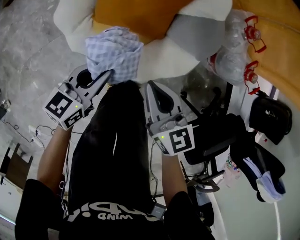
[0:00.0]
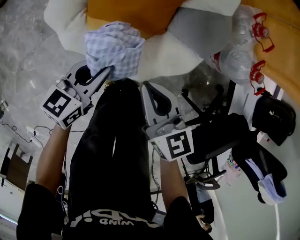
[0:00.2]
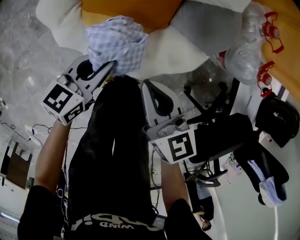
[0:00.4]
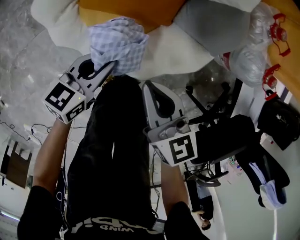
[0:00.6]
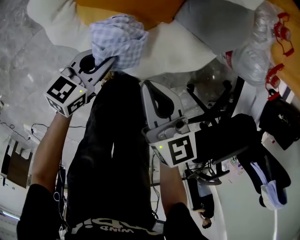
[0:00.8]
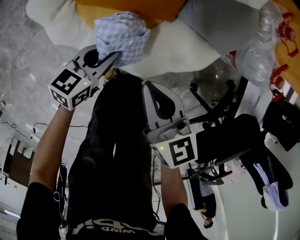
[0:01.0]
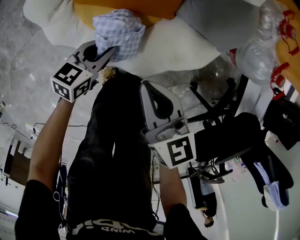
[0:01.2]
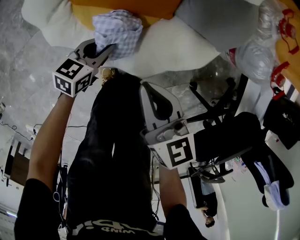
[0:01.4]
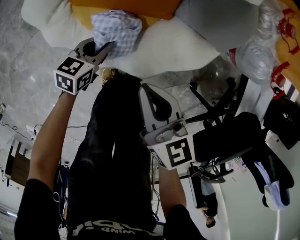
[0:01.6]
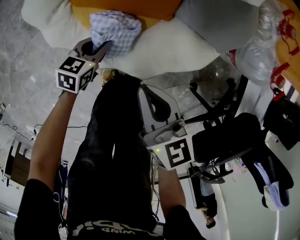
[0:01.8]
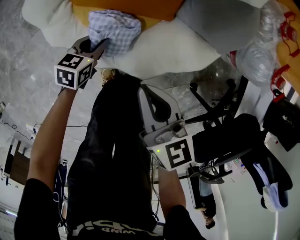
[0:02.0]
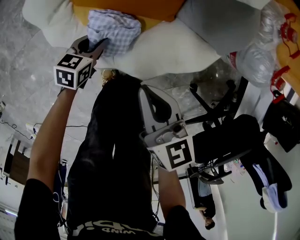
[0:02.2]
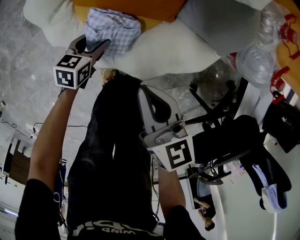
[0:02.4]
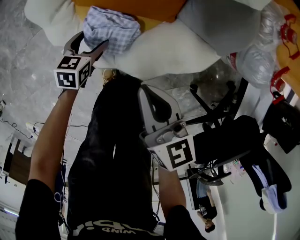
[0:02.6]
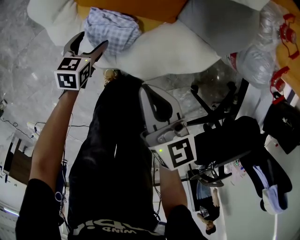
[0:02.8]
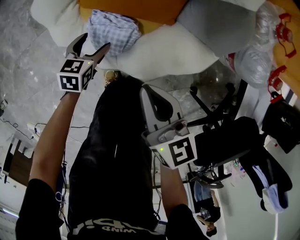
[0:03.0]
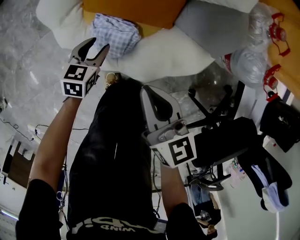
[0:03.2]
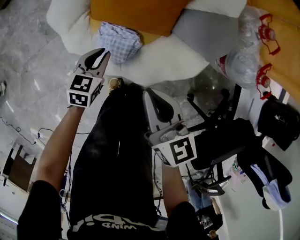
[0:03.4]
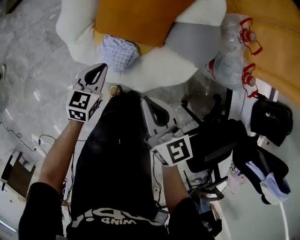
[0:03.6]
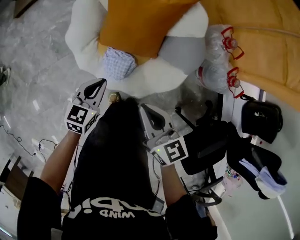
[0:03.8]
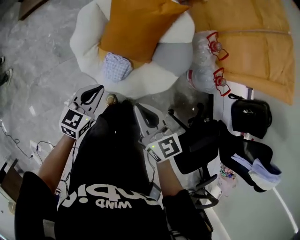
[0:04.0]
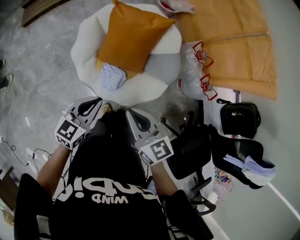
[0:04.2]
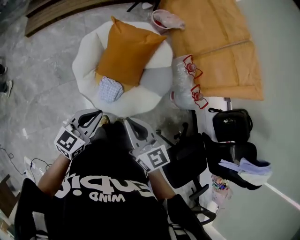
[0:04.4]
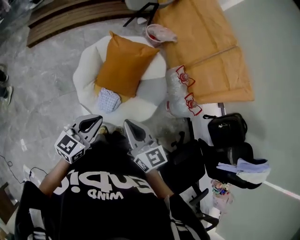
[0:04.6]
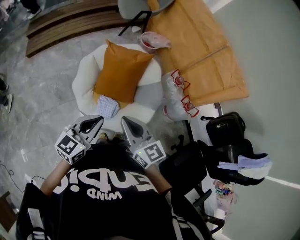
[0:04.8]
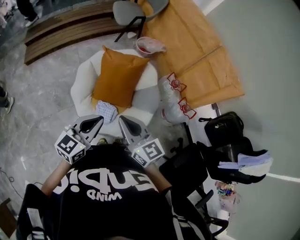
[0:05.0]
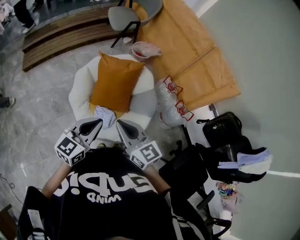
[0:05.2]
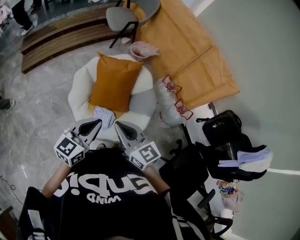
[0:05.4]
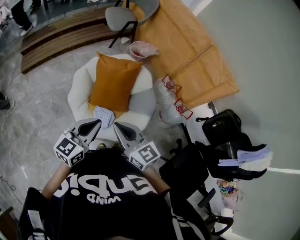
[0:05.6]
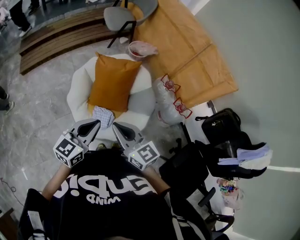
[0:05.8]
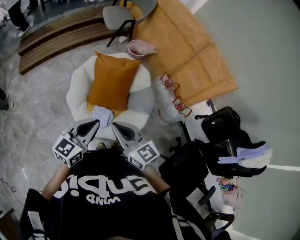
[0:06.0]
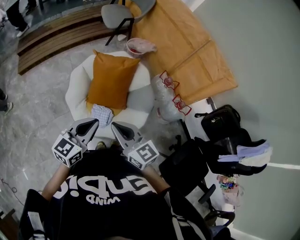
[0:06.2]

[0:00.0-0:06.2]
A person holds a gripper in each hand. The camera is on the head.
0:00.0 to 0:01.6: The left gripper heads downward, covering some 30 cm. The right gripper travels downward by approximately 15 cm.
0:01.6 to 0:03.2: The left gripper goes about 5 cm to the left, and opens, then closes again.
0:03.2 to 0:04.6: The two grippers go about 50 cm upward. The right gripper turns by roughly 20 degrees. The left gripper angles its fingers upward, by roughly 40 degrees, and closes up.
0:04.6 to 0:06.2: The left gripper changes place by some 5 cm.

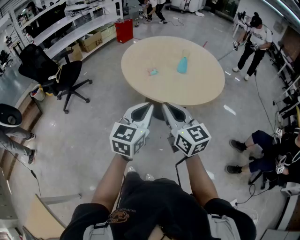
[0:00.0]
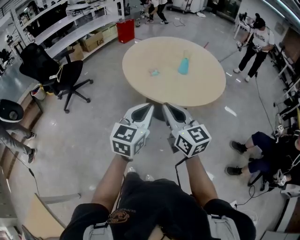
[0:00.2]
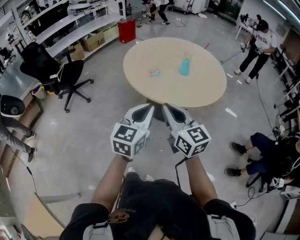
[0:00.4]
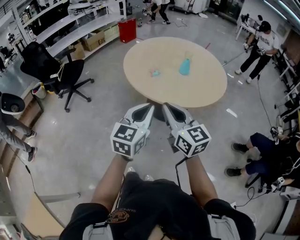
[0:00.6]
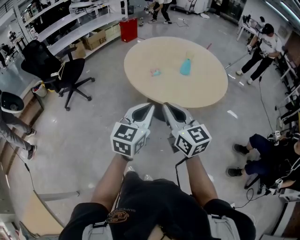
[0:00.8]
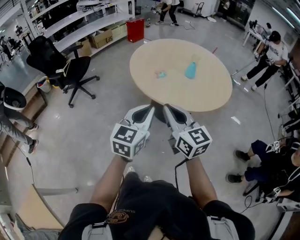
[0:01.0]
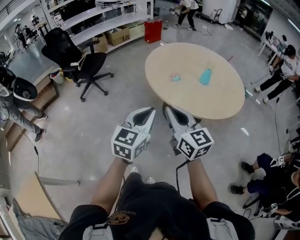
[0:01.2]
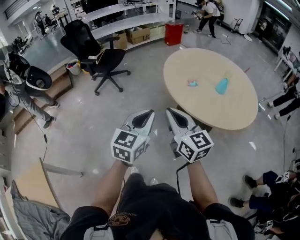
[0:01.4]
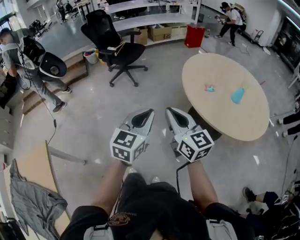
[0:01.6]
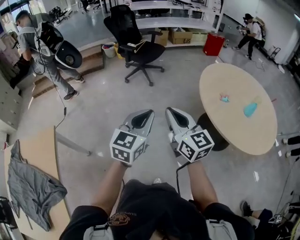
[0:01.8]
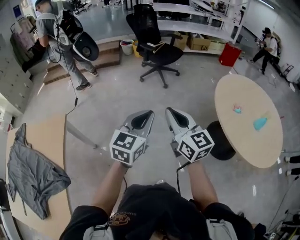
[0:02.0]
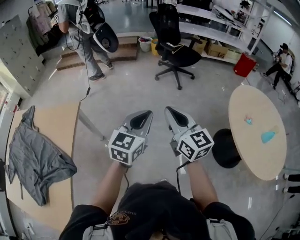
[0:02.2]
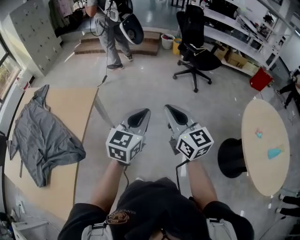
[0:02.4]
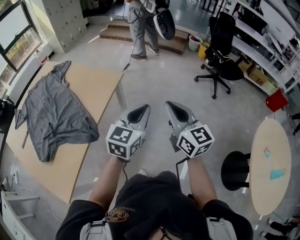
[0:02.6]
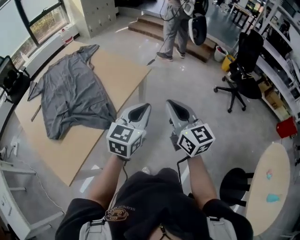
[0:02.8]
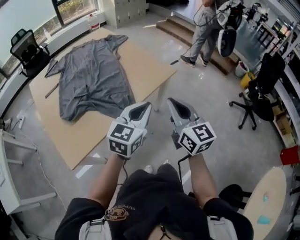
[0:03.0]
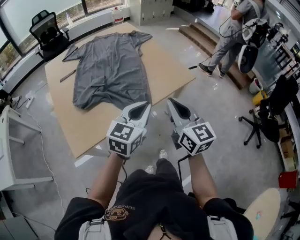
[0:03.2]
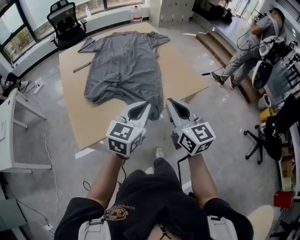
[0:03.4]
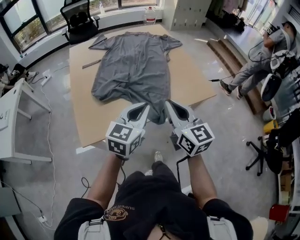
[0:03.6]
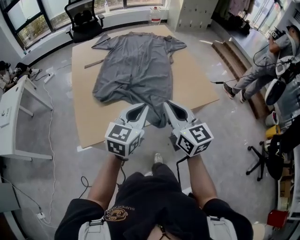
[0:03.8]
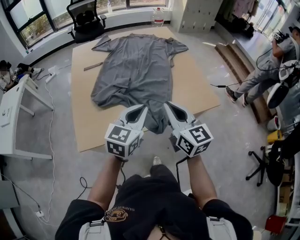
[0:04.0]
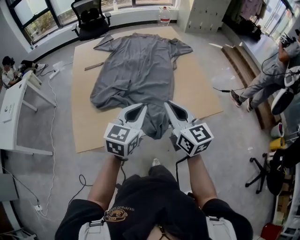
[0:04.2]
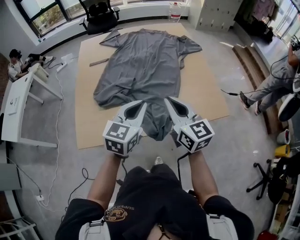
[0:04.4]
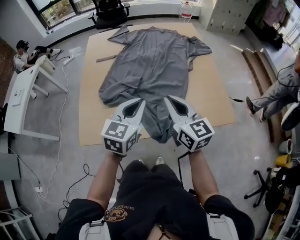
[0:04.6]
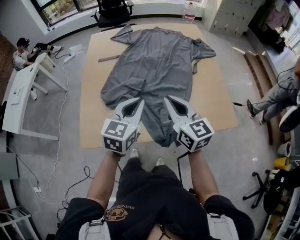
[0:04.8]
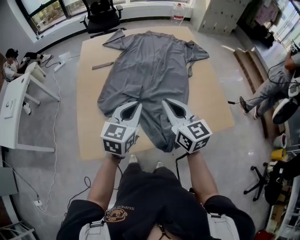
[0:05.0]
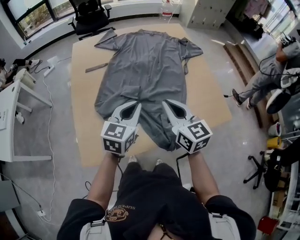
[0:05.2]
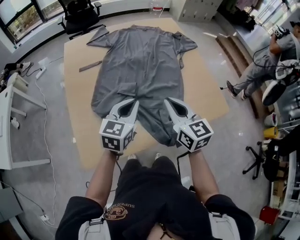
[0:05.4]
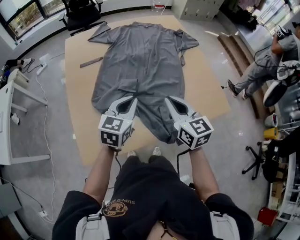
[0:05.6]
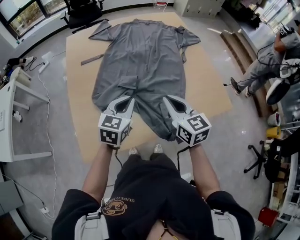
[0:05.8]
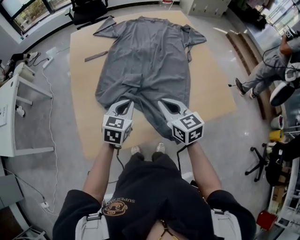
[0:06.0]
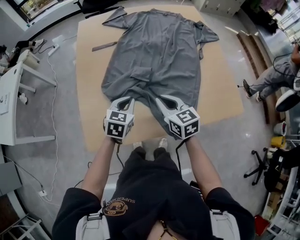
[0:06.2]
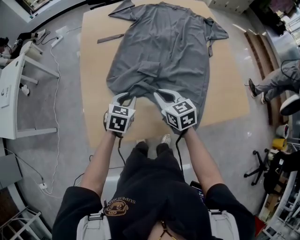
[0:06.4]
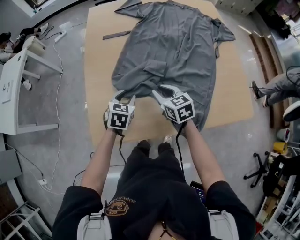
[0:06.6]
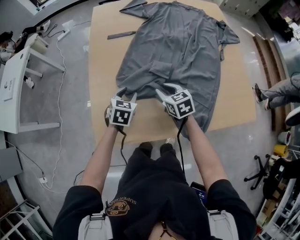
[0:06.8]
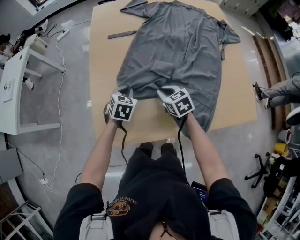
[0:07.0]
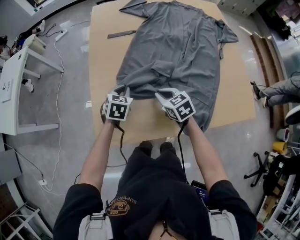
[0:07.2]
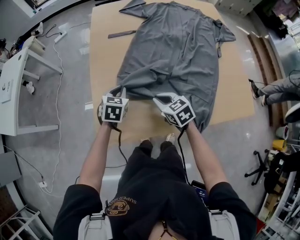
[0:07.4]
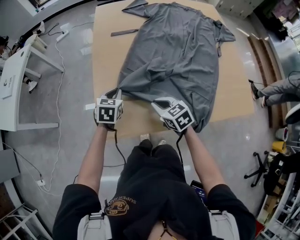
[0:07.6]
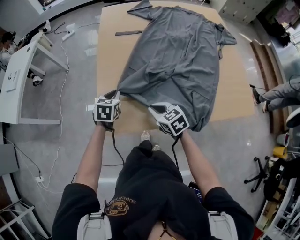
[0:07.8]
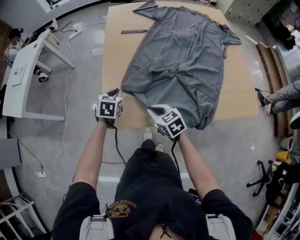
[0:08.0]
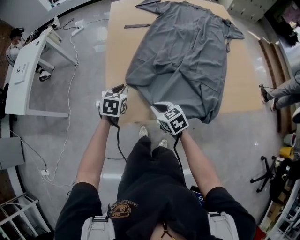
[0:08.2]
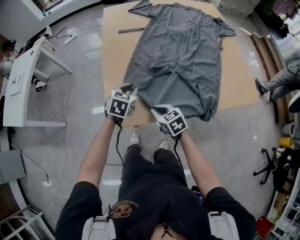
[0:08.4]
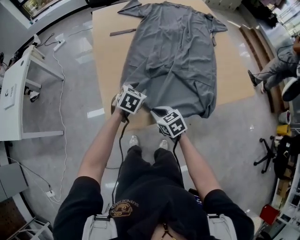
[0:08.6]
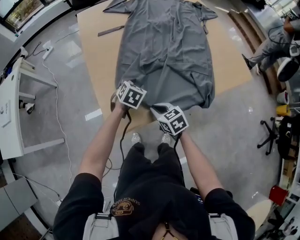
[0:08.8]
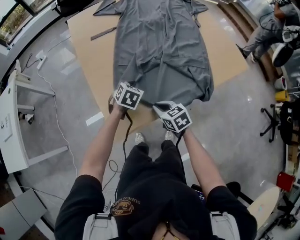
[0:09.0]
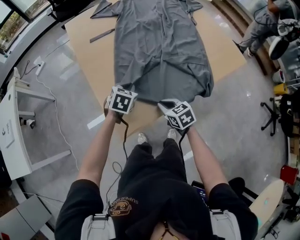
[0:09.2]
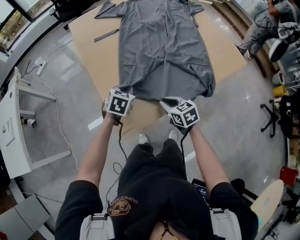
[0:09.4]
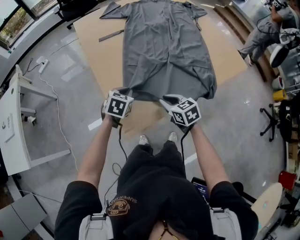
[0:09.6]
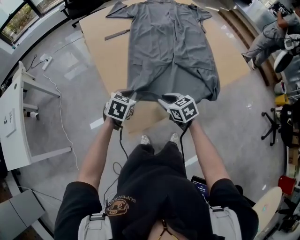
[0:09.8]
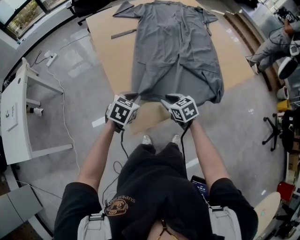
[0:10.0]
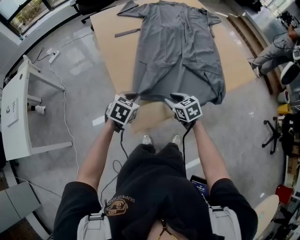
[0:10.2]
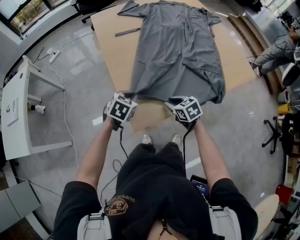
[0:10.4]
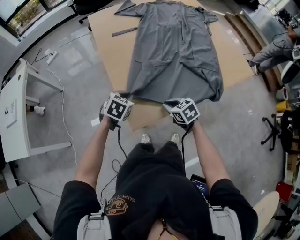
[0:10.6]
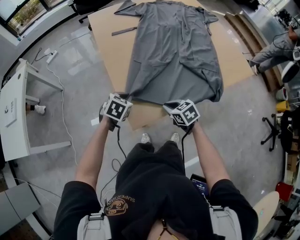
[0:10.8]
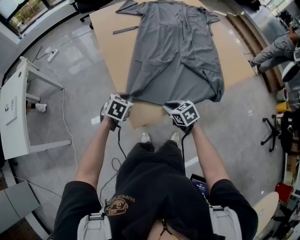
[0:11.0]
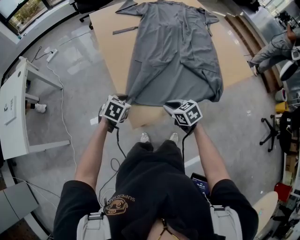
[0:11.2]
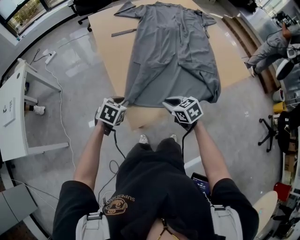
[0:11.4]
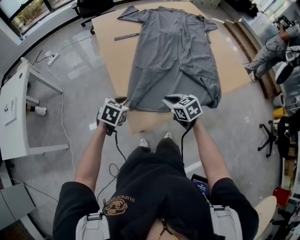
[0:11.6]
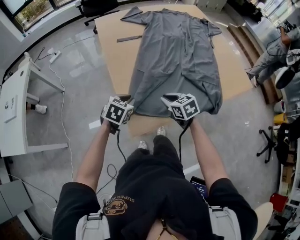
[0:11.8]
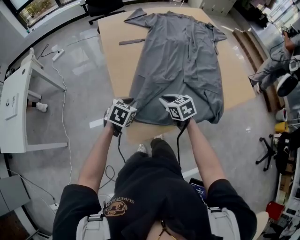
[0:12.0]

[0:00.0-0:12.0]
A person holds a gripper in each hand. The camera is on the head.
0:00.0 to 0:01.6: The right gripper changes place by approximately 15 cm, and changes its angle by approximately 30 degrees, while the left gripper changes place by some 20 cm, and changes its angle by about 30 degrees.
0:01.6 to 0:03.0: The two grippers travel together, approximately 60 cm. The right gripper turns by roughly 70 degrees. The left gripper changes its angle by roughly 70 degrees.
0:03.0 to 0:04.4: The left gripper moves about 25 cm, and turns by roughly 40 degrees, while the right gripper ends up some 25 cm from where it was, and swivels roughly 40 degrees.
0:04.4 to 0:06.0: The right gripper goes about 15 cm downward, to the left and forward. The left gripper shifts approximately 20 cm to the left, downward and forward.
0:06.0 to 0:07.6: Both grippers travel together to the left and downward, about 20 cm. The right gripper swivels about 30 degrees, and opens and closes again; the left gripper rotates about 20 degrees, and opens, then closes again.
0:07.6 to 0:09.0: The left gripper moves roughly 10 cm, turns by some 30 degrees, and opens and closes again. Meanwhile the right gripper moves some 10 cm, and rotates some 20 degrees.
0:09.0 to 0:10.4: The left gripper is displaced to the left and backward by roughly 15 cm.
0:10.4 to 0:12.0: The right gripper travels forward by roughly 10 cm.

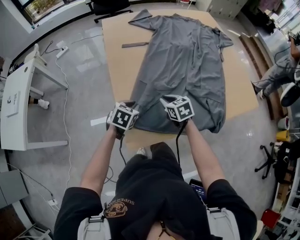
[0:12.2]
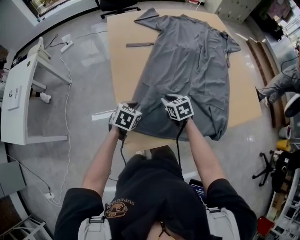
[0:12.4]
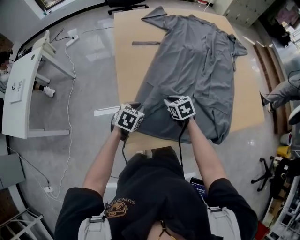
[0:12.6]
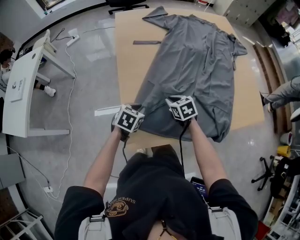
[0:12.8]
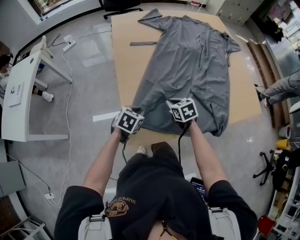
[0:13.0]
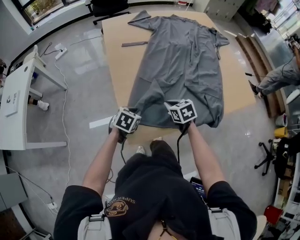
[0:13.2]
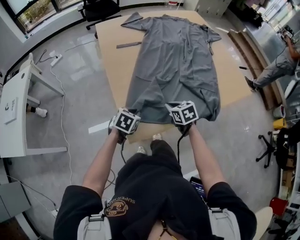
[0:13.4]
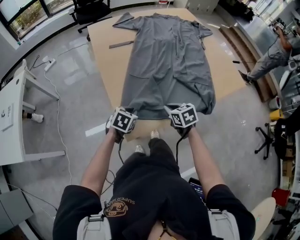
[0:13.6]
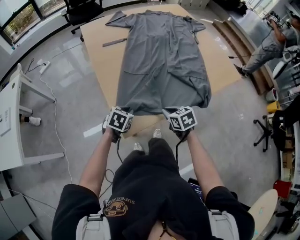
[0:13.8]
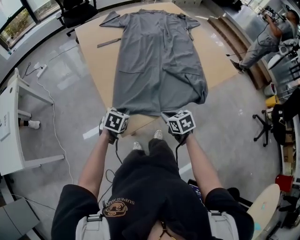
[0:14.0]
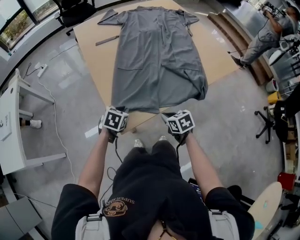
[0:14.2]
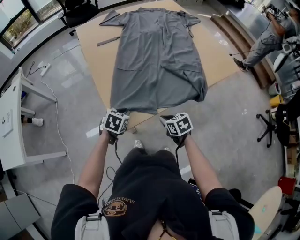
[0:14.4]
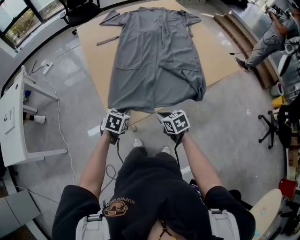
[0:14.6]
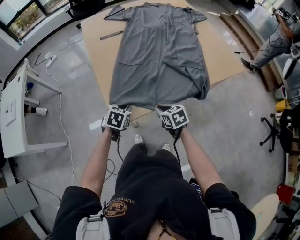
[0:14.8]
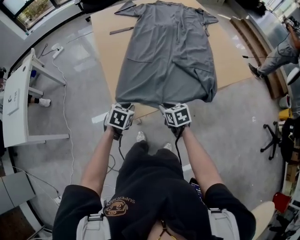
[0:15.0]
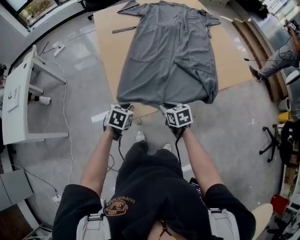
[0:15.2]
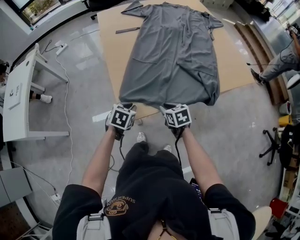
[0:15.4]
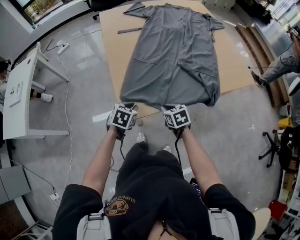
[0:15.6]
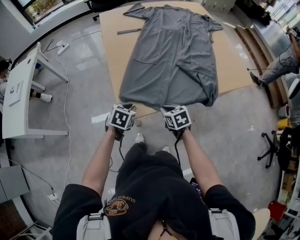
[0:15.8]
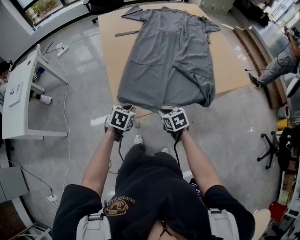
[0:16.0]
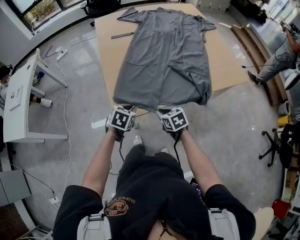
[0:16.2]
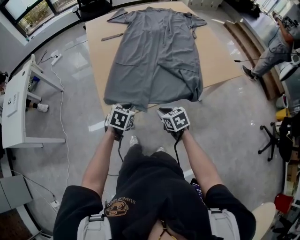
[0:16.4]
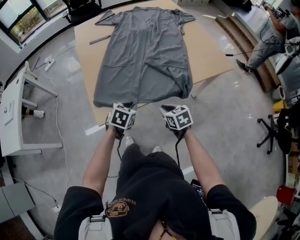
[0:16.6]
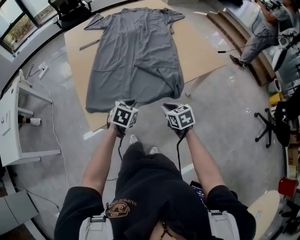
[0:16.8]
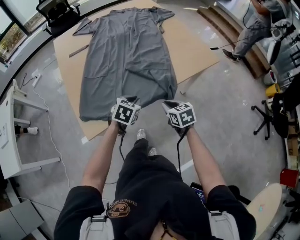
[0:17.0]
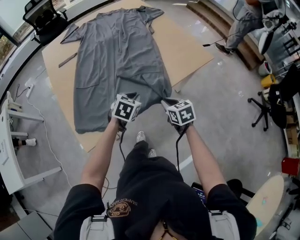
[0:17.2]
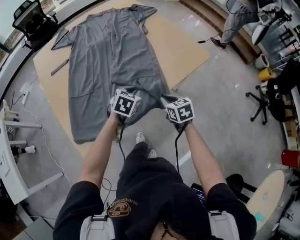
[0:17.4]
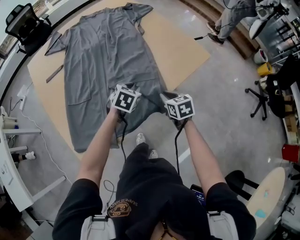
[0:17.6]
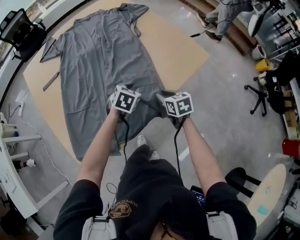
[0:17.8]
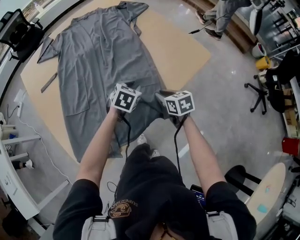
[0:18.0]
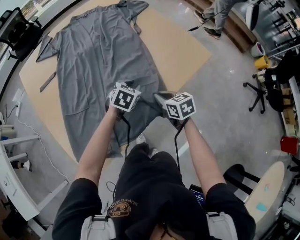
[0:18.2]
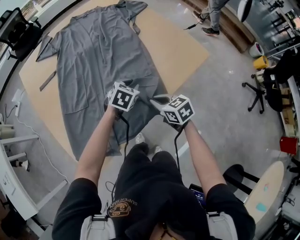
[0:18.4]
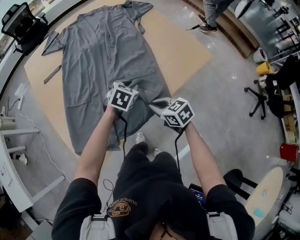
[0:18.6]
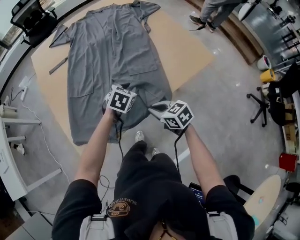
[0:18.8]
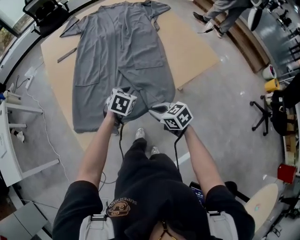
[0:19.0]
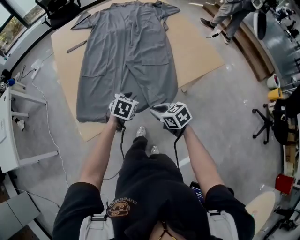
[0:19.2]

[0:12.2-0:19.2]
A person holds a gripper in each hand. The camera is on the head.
0:12.2 to 0:13.6: Both grippers travel together backward, roughly 10 cm.
0:13.6 to 0:15.0: The two grippers go approximately 5 cm backward.
0:15.0 to 0:16.4: The grippers both shift to the right by approximately 5 cm.
0:16.4 to 0:17.8: The left gripper changes place by about 35 cm, and swivels approximately 30 degrees, while the right gripper changes place by roughly 30 cm, and turns by roughly 30 degrees.
0:17.8 to 0:19.2: The right gripper ends up some 20 cm from where it was, turns by some 40 degrees, and closes; the left gripper ends up approximately 15 cm from where it was.
